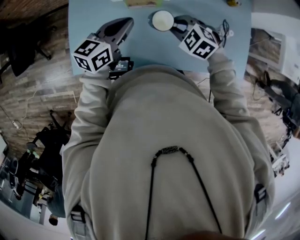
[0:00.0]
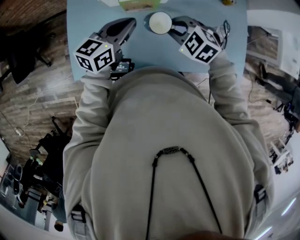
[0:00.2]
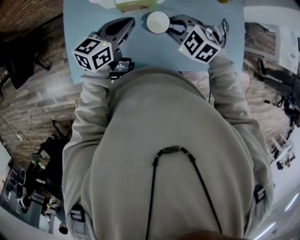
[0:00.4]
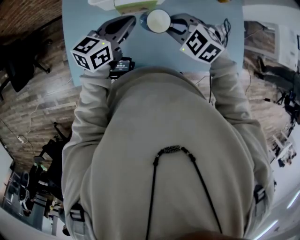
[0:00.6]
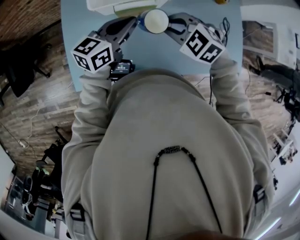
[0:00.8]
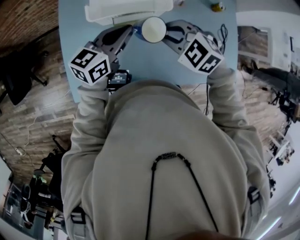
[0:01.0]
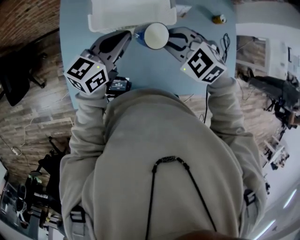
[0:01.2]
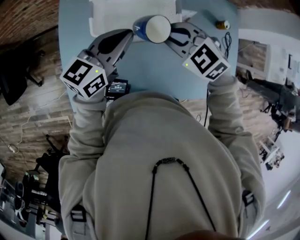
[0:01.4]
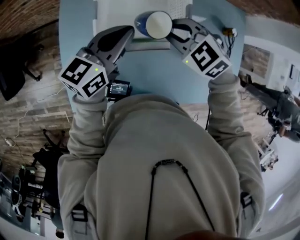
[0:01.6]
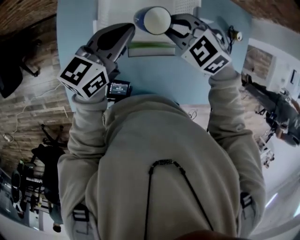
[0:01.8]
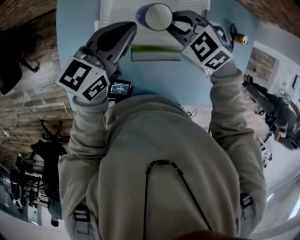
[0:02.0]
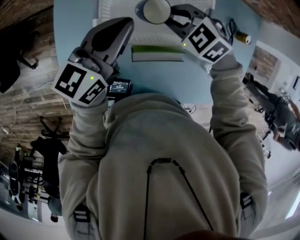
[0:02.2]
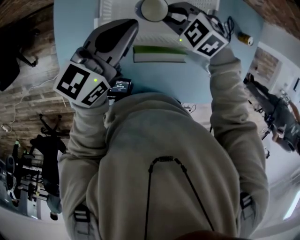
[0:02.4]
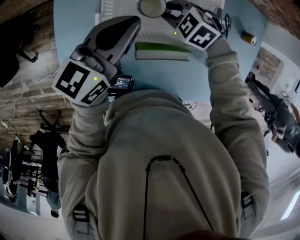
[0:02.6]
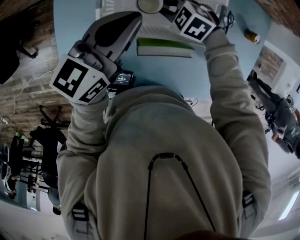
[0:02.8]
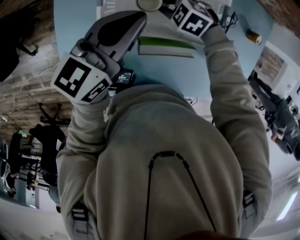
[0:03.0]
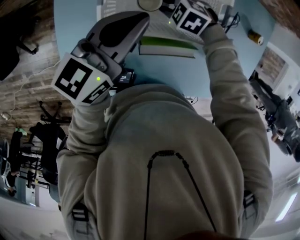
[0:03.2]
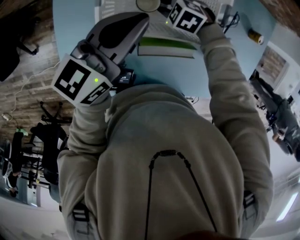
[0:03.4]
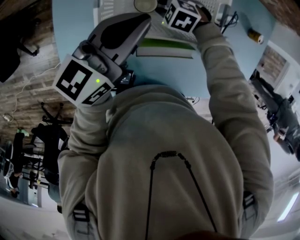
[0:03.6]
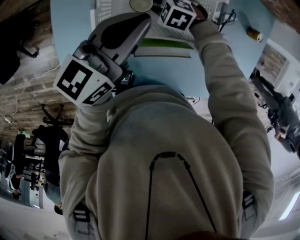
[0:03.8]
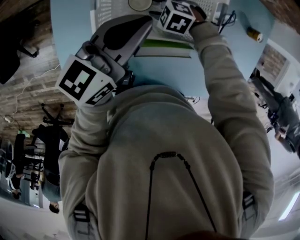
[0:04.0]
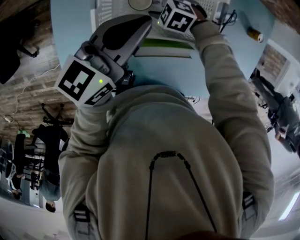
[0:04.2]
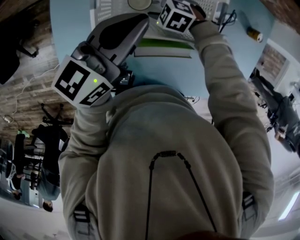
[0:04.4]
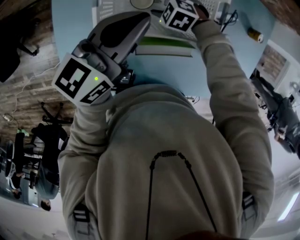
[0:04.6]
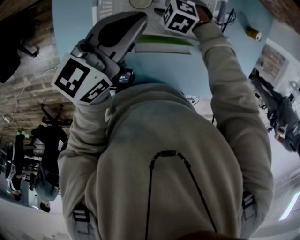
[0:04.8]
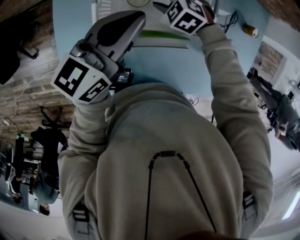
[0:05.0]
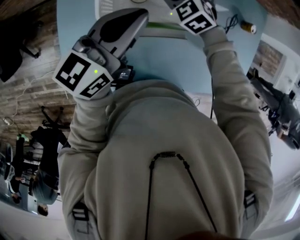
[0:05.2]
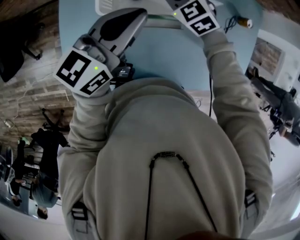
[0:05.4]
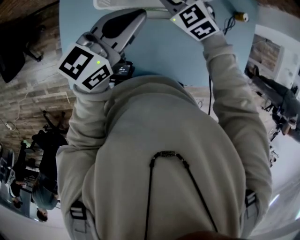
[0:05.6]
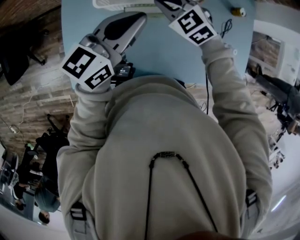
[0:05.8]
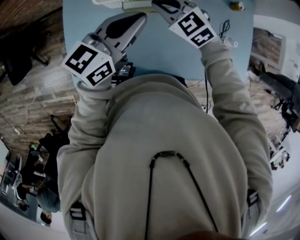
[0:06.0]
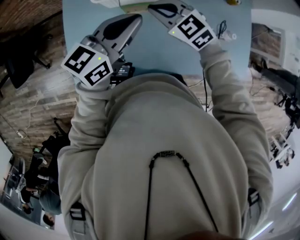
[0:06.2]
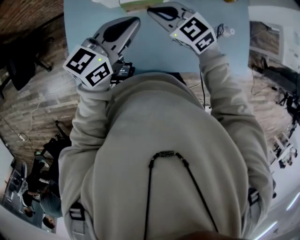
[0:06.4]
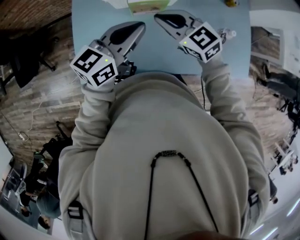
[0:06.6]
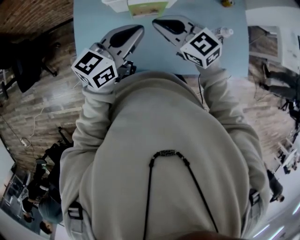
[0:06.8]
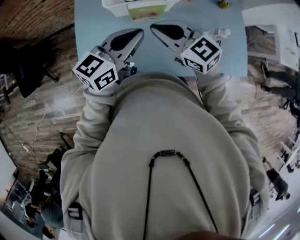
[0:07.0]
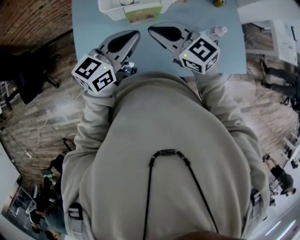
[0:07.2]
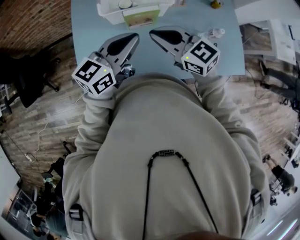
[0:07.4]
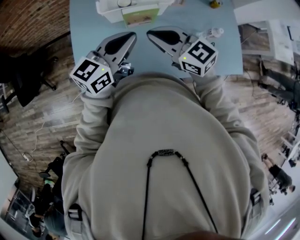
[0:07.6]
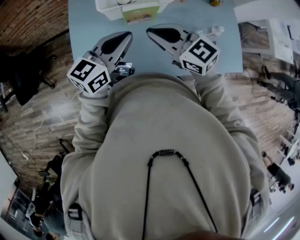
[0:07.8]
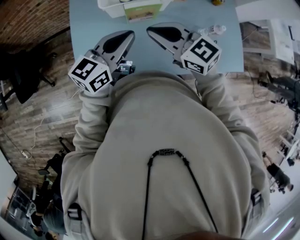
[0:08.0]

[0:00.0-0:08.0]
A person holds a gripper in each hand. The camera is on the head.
0:00.0 to 0:01.6: The grippers both shift forward by about 15 cm.
0:01.6 to 0:03.2: The right gripper travels downward by roughly 20 cm, and turns by about 20 degrees.
0:03.2 to 0:04.8: The right gripper opens its fingers.
0:04.8 to 0:06.4: The right gripper is displaced upward and backward by some 30 cm, tilts its fingers approximately 40 degrees upward, and closes up, while the left gripper travels backward by about 20 cm.
0:06.4 to 0:08.0: The right gripper travels backward and upward by some 10 cm, while the left gripper ends up about 5 cm from where it was.

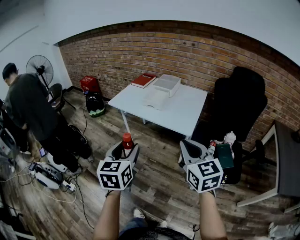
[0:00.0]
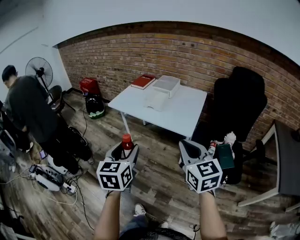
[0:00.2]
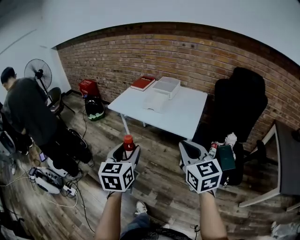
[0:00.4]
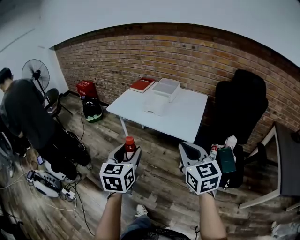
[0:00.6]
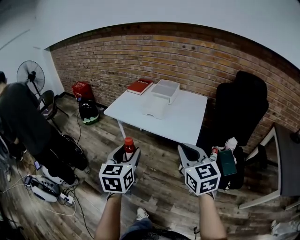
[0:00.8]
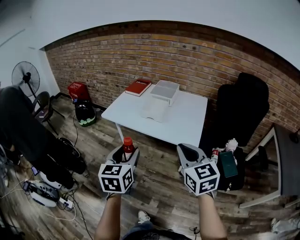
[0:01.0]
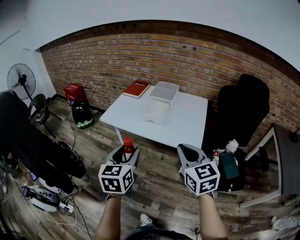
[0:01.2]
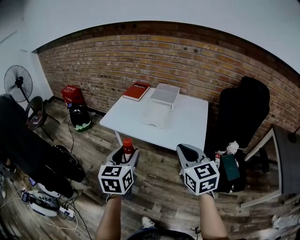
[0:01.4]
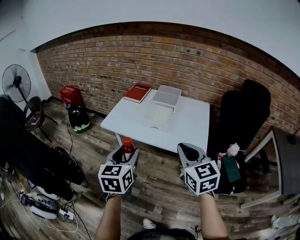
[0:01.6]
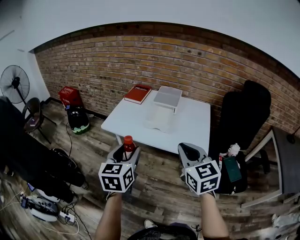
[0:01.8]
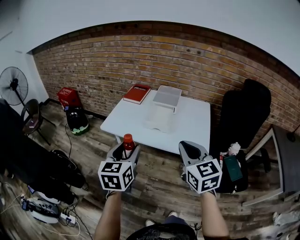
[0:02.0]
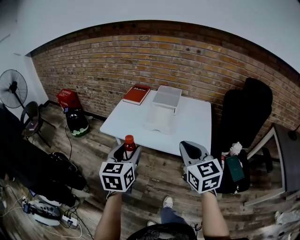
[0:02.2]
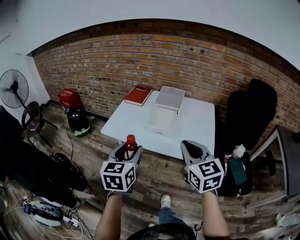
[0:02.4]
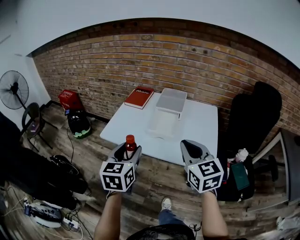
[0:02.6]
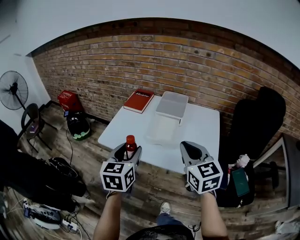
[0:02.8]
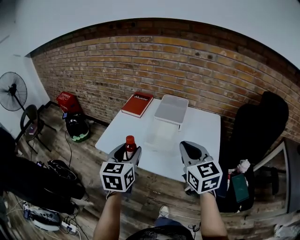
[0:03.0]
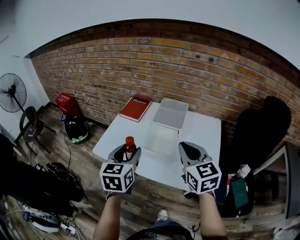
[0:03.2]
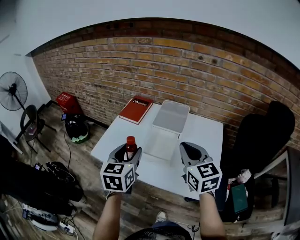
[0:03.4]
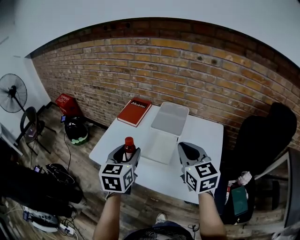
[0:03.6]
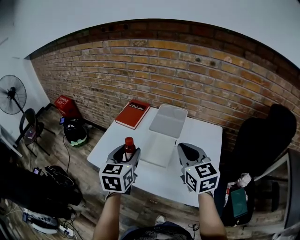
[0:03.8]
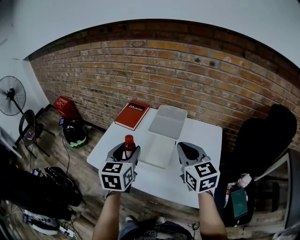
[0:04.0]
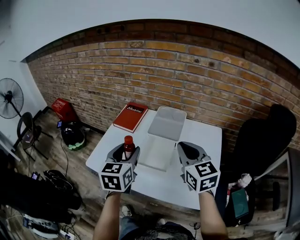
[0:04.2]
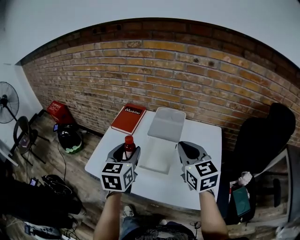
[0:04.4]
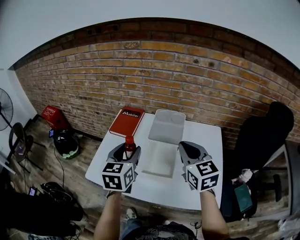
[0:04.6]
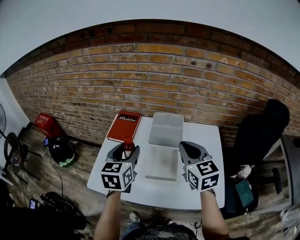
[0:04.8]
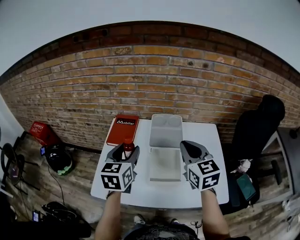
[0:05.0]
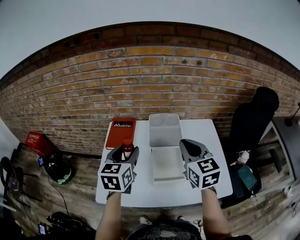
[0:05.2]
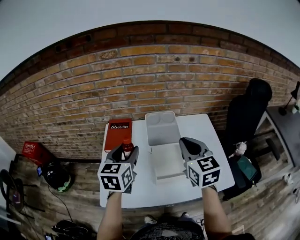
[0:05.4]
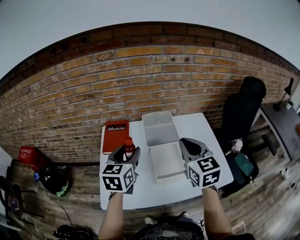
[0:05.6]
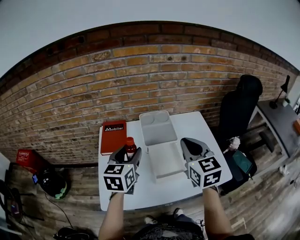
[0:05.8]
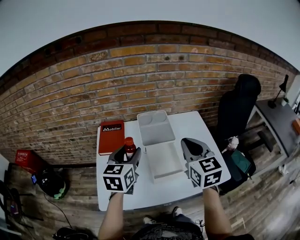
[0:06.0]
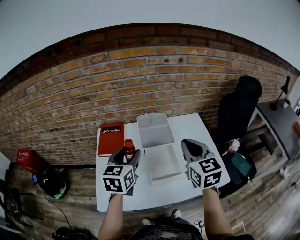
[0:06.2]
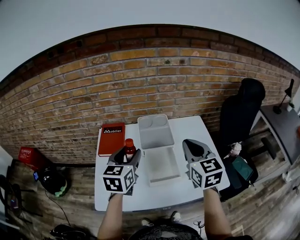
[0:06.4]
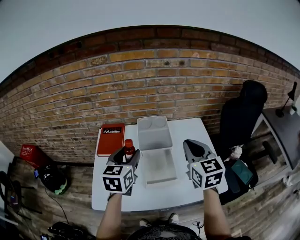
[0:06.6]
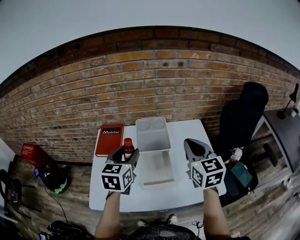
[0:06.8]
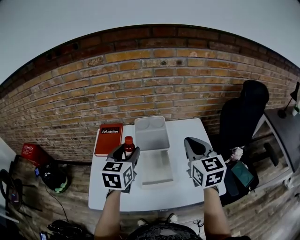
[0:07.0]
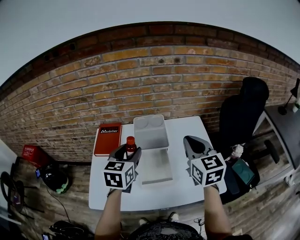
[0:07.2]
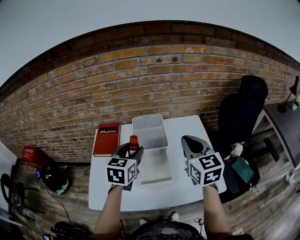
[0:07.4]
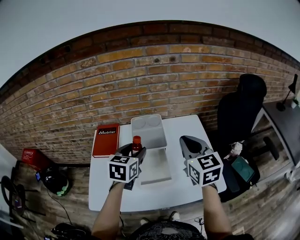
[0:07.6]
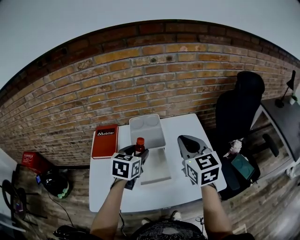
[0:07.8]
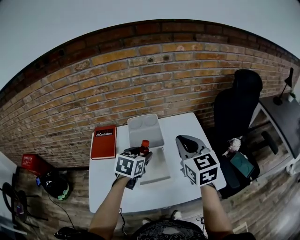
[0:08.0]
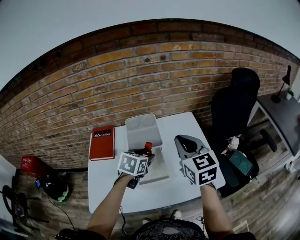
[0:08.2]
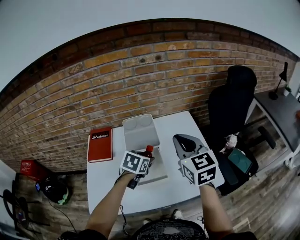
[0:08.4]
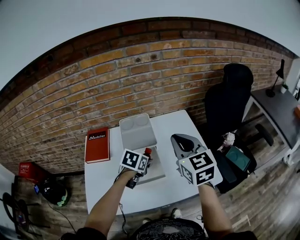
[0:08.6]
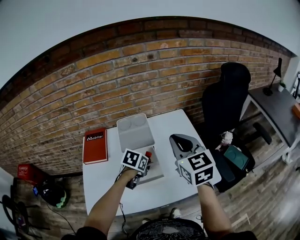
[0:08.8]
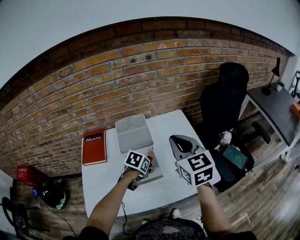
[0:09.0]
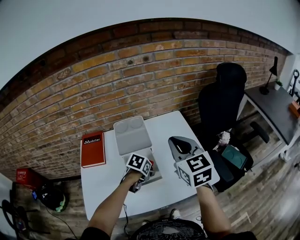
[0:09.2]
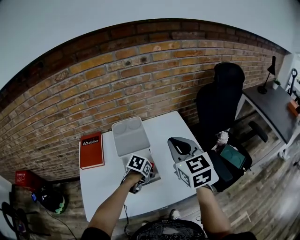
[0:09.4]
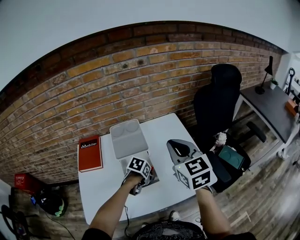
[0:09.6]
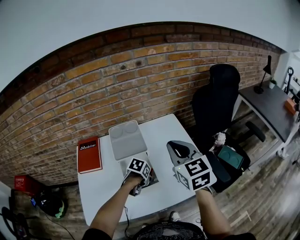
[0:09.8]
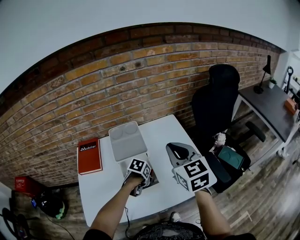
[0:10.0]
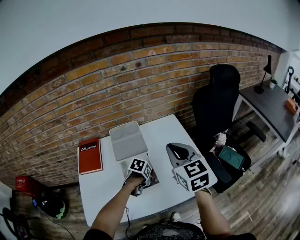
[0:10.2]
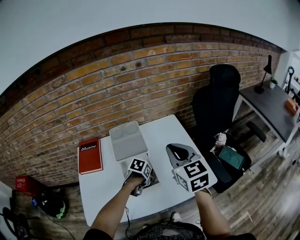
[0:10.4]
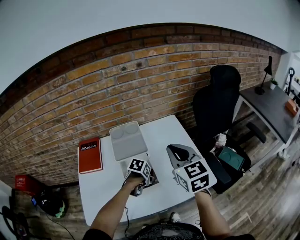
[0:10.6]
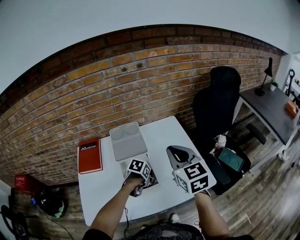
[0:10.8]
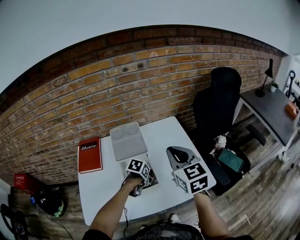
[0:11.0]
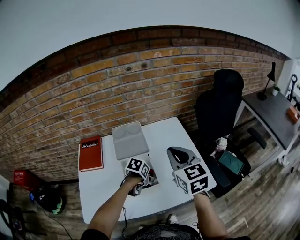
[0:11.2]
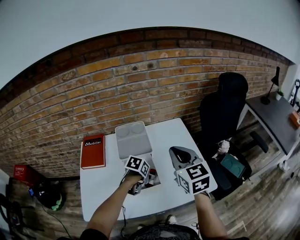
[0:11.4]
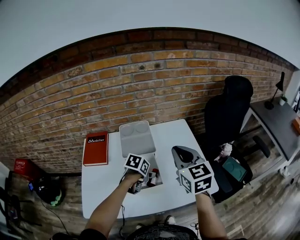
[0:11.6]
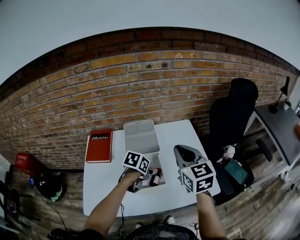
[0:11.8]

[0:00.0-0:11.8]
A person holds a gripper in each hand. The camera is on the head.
0:00.0 to 0:01.4: The left gripper travels forward by roughly 20 cm, while the right gripper travels forward and to the left by some 20 cm.
0:01.4 to 0:03.0: Both grippers move forward, some 25 cm.
0:03.0 to 0:04.4: The two grippers go some 15 cm forward.
0:04.4 to 0:06.0: The left gripper ends up roughly 10 cm from where it was, and turns by about 30 degrees. Meanwhile the right gripper swivels about 30 degrees.
0:06.0 to 0:07.4: Both grippers travel together to the right, about 10 cm.
0:07.4 to 0:08.8: The left gripper moves downward and to the right, roughly 20 cm, and points its fingers some 30 degrees further downward.
0:08.8 to 0:10.4: The left gripper travels downward by approximately 10 cm.
0:10.4 to 0:11.8: The left gripper moves upward, roughly 10 cm.

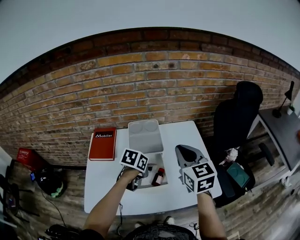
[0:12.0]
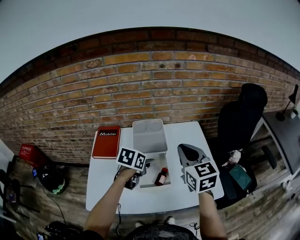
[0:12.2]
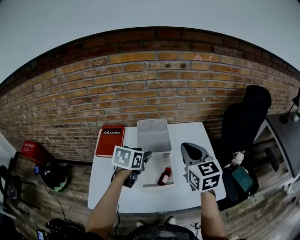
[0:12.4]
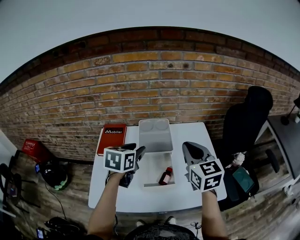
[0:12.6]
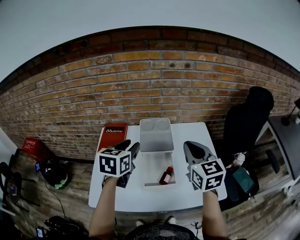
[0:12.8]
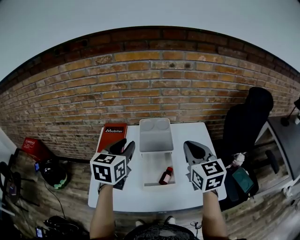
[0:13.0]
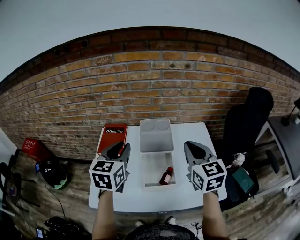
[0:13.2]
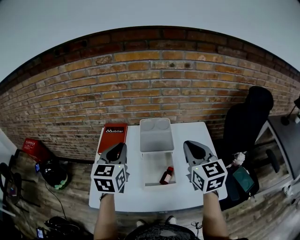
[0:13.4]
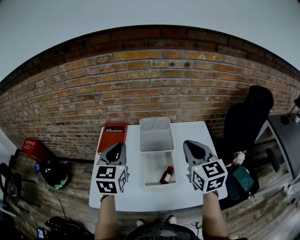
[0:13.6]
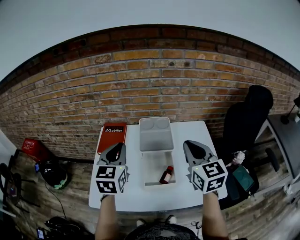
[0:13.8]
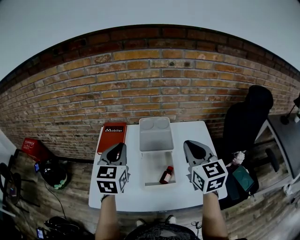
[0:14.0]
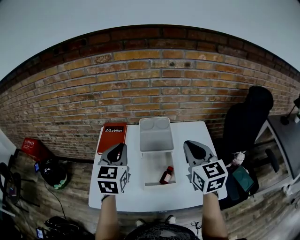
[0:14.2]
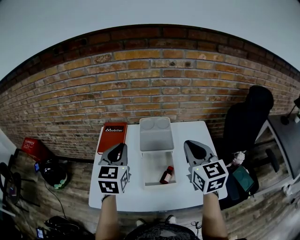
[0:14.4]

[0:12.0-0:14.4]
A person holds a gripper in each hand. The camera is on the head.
0:12.0 to 0:13.2: The left gripper travels upward and to the left by roughly 25 cm, tips its fingers upward by about 30 degrees, and closes its fingers.
0:13.2 to 0:14.4: The grippers move only a little.

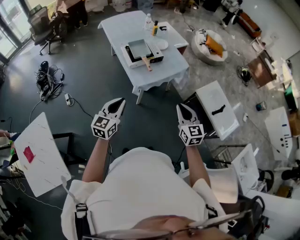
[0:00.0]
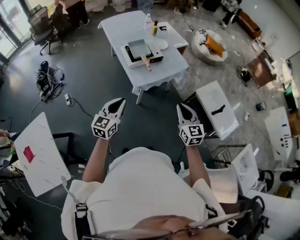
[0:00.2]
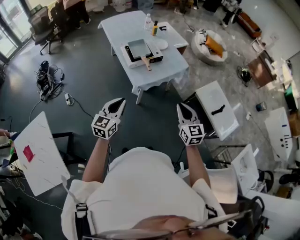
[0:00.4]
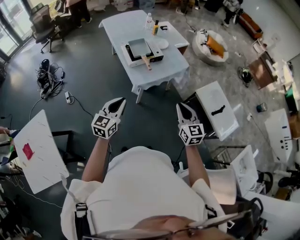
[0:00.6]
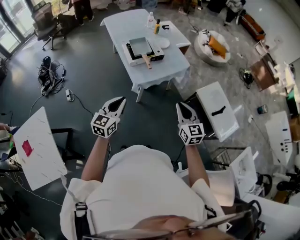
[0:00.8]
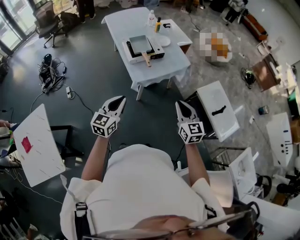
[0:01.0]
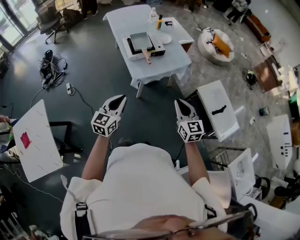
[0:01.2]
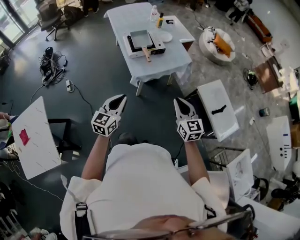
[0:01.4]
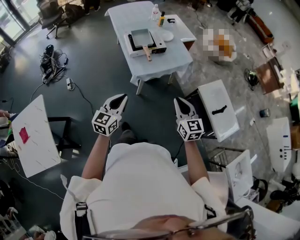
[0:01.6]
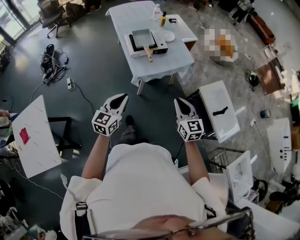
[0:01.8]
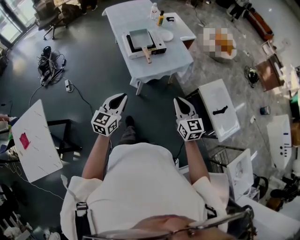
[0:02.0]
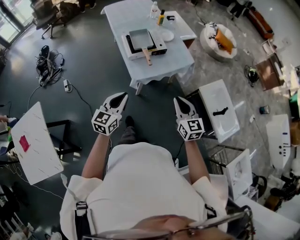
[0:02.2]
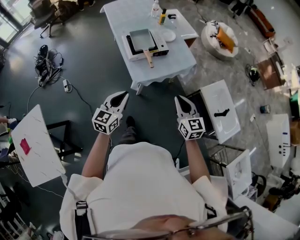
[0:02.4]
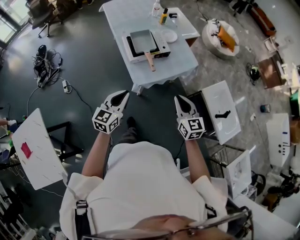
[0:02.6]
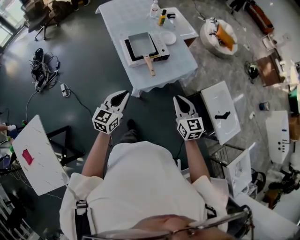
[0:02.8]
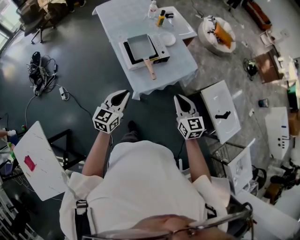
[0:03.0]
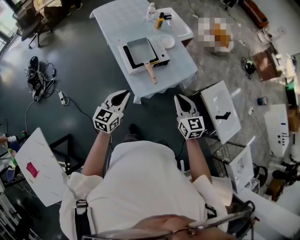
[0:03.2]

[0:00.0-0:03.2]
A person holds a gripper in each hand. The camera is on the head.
0:00.0 to 0:01.6: The left gripper shifts roughly 5 cm to the right.
0:01.6 to 0:03.2: The right gripper moves forward and to the left, some 25 cm, while the left gripper goes some 25 cm forward.
